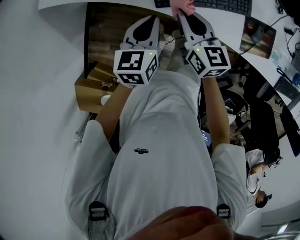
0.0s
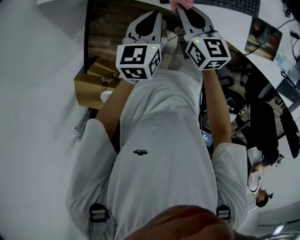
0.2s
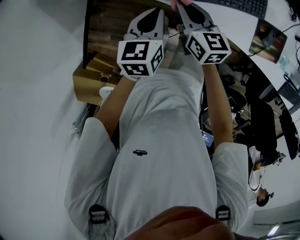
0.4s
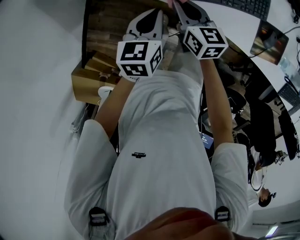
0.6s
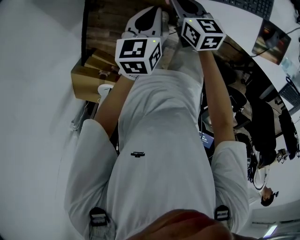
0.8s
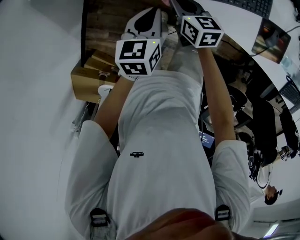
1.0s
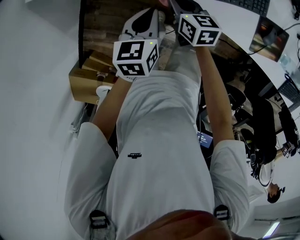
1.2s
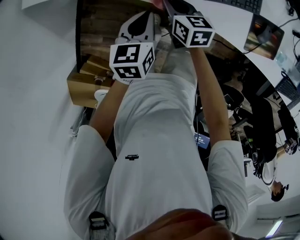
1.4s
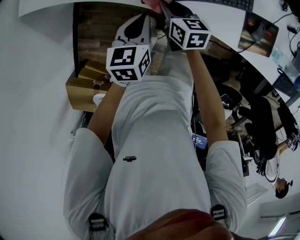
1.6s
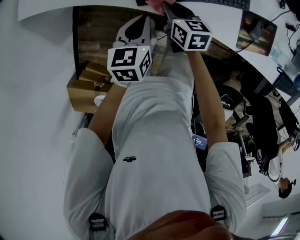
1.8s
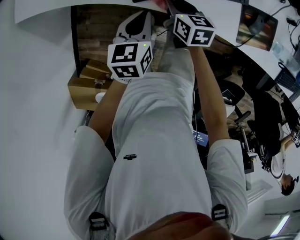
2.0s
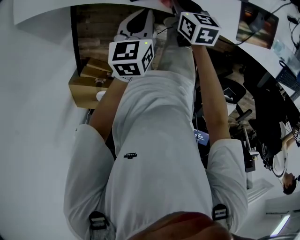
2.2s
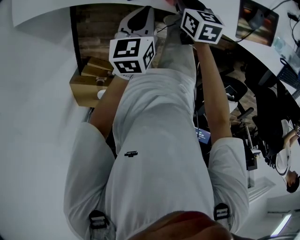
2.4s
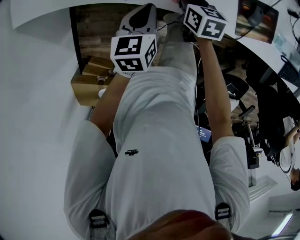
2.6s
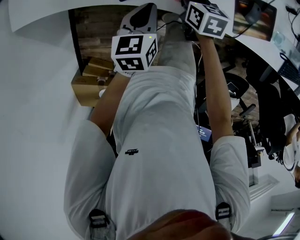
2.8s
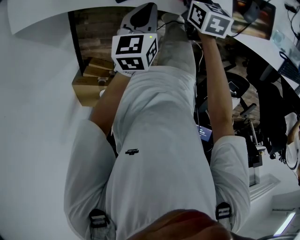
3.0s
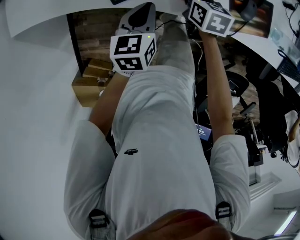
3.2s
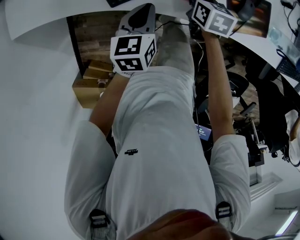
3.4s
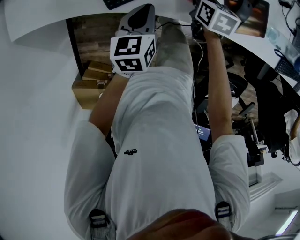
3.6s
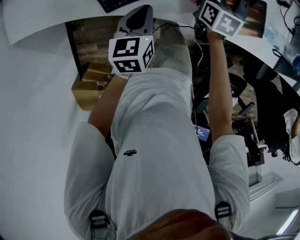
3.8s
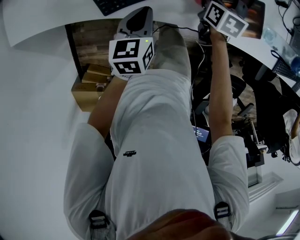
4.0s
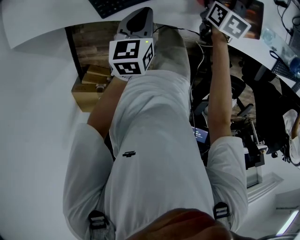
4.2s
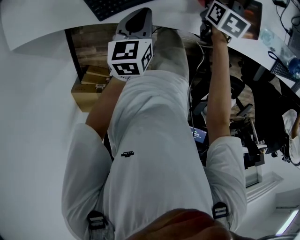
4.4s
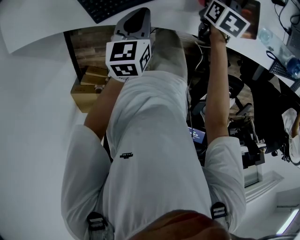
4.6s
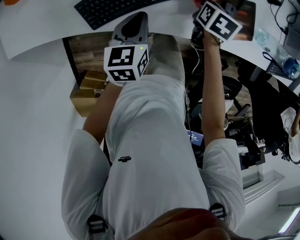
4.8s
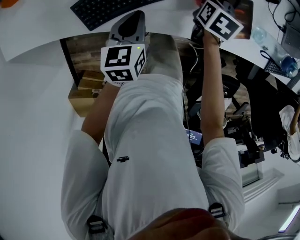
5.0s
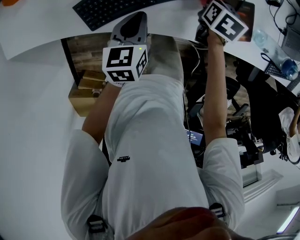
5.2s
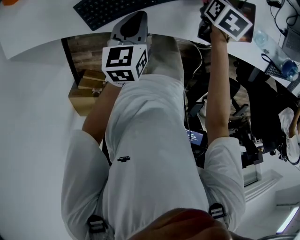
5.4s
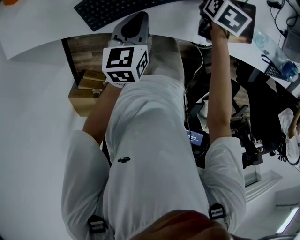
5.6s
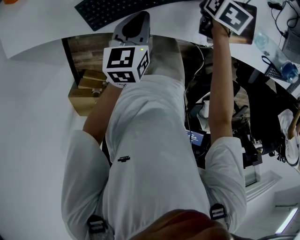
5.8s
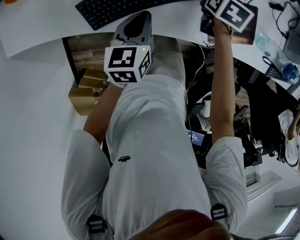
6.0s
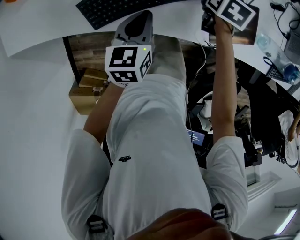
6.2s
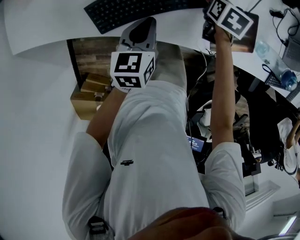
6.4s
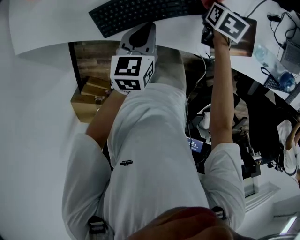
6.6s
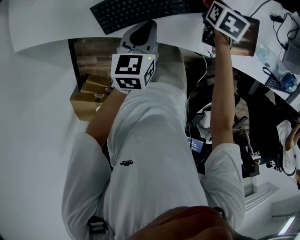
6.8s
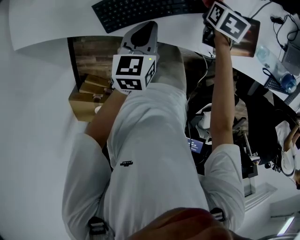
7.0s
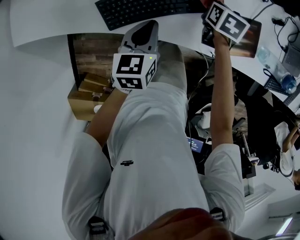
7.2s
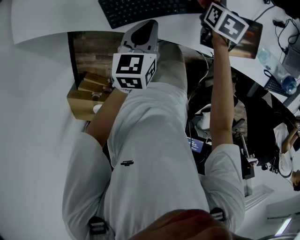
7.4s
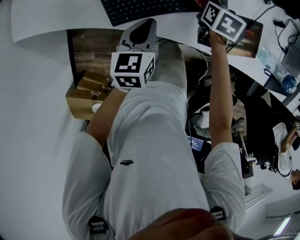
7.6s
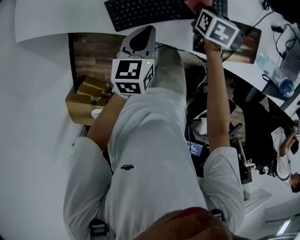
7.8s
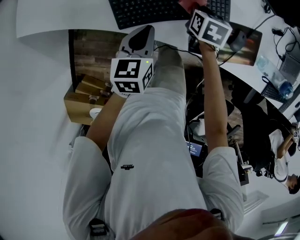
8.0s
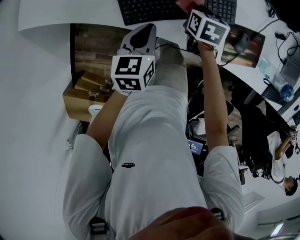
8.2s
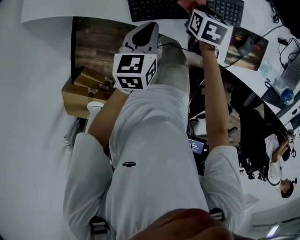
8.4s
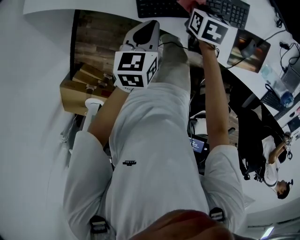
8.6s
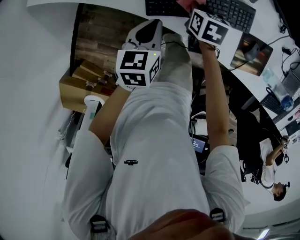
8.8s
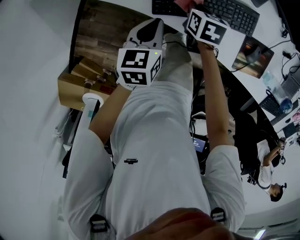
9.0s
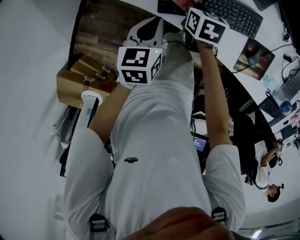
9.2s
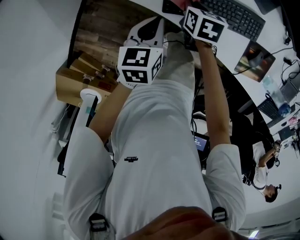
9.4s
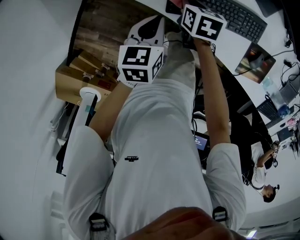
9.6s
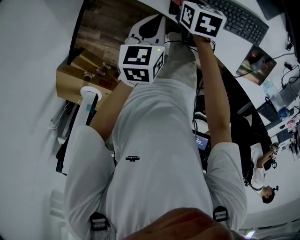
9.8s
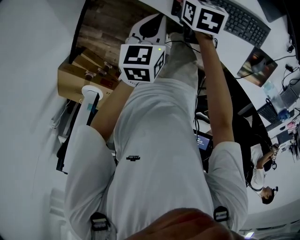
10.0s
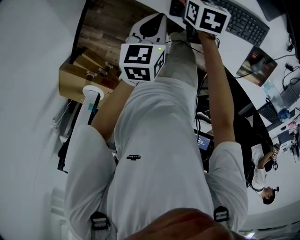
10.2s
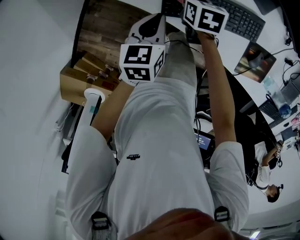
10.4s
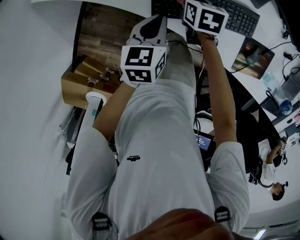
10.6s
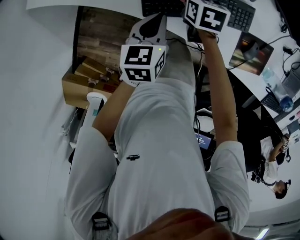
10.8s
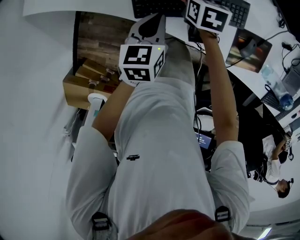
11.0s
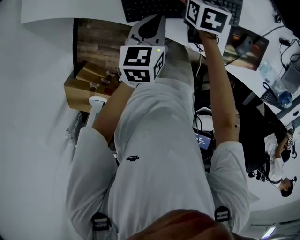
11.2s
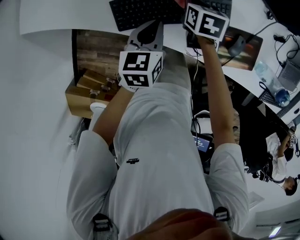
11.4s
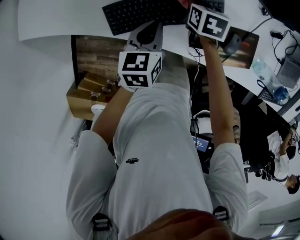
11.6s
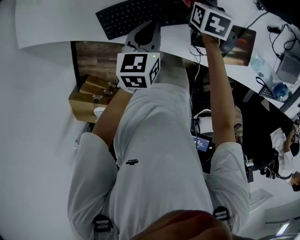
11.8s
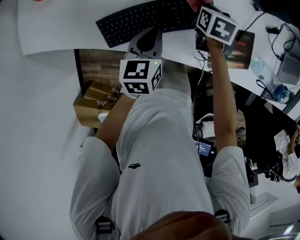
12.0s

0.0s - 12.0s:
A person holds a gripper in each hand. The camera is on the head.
0.0s - 1.6s: The right gripper travels downward by about 15 cm. Meanwhile the left gripper goes some 10 cm downward.
1.6s - 3.0s: The right gripper is displaced to the right by about 15 cm; the left gripper goes approximately 10 cm to the right.
3.0s - 4.4s: The left gripper ends up some 5 cm from where it was. Meanwhile the right gripper is displaced to the right by approximately 15 cm.
4.4s - 6.0s: The right gripper is displaced forward by about 5 cm.
6.0s - 7.6s: The right gripper heads to the left, covering approximately 5 cm, while the left gripper moves some 5 cm.
7.6s - 9.0s: The right gripper moves to the left, roughly 20 cm, while the left gripper heads to the left, covering approximately 10 cm.
9.0s - 10.4s: The right gripper travels to the left by about 5 cm.
10.4s - 12.0s: Both grippers move to the right, about 25 cm. The right gripper rotates approximately 20 degrees.

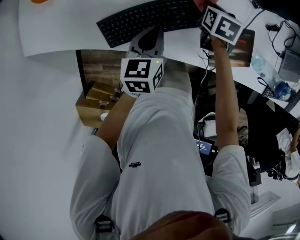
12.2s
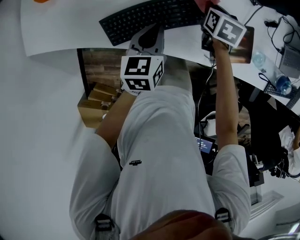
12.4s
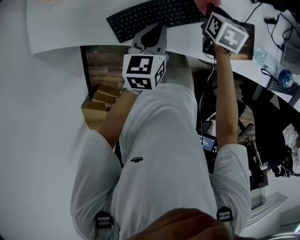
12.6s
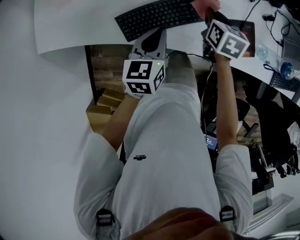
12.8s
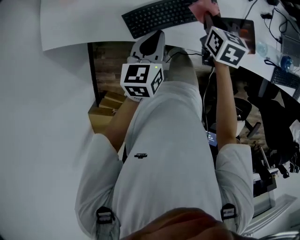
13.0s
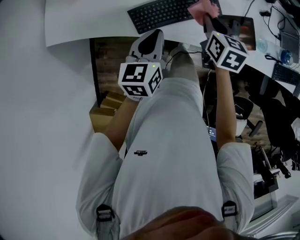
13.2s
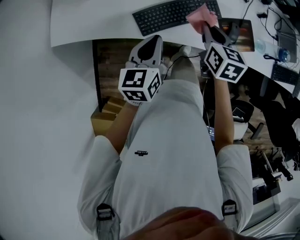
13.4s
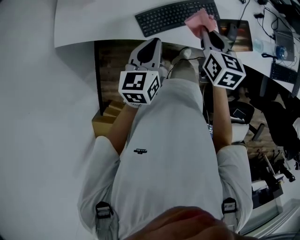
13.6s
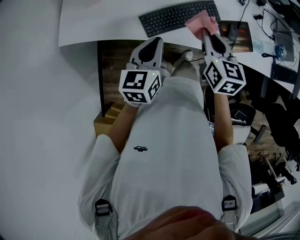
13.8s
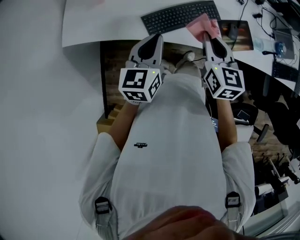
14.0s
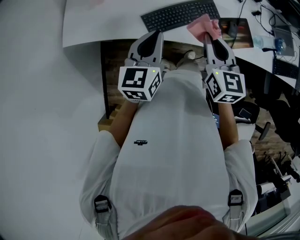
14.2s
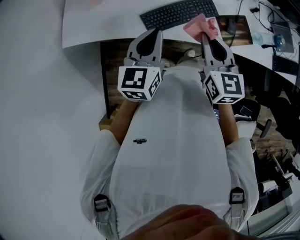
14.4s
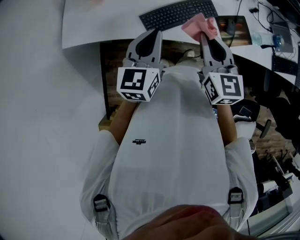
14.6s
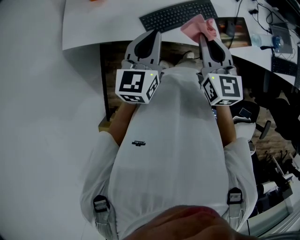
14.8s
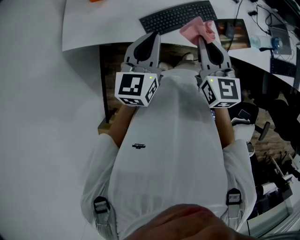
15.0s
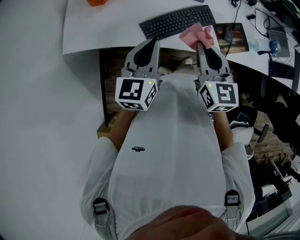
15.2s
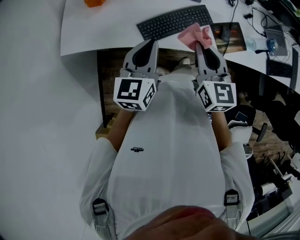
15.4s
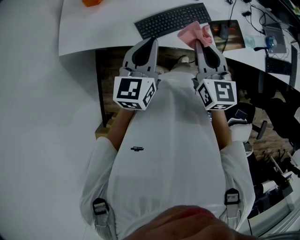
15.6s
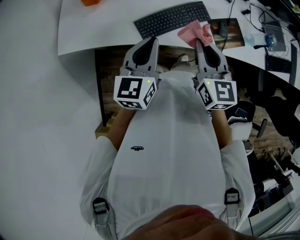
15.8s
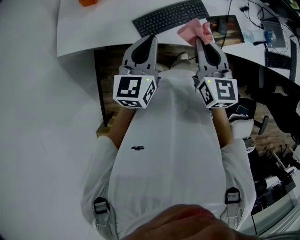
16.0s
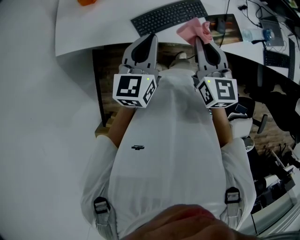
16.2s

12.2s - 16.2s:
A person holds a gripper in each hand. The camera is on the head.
12.2s - 13.6s: The two grippers go about 30 cm upward, backward and to the left. The right gripper turns by roughly 20 degrees.
13.6s - 14.8s: The left gripper moves upward, approximately 10 cm. The right gripper moves upward and backward, some 10 cm, and changes its angle by roughly 20 degrees.
14.8s - 16.2s: There are only small adjustments of the grippers.

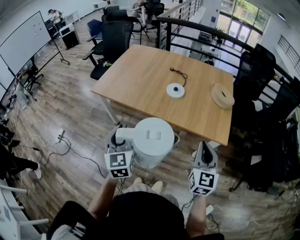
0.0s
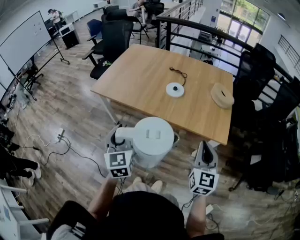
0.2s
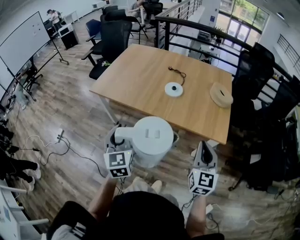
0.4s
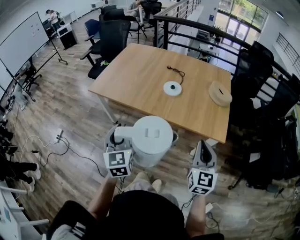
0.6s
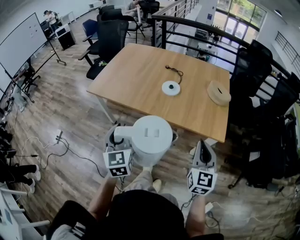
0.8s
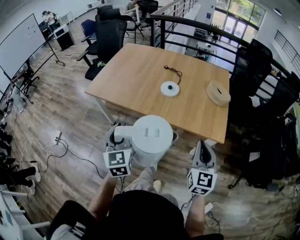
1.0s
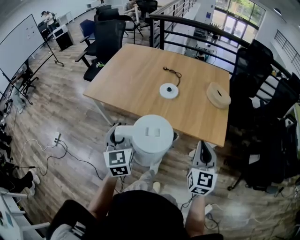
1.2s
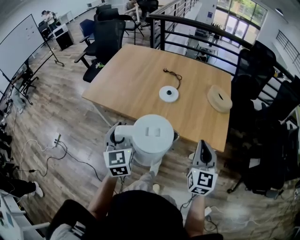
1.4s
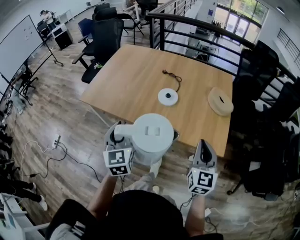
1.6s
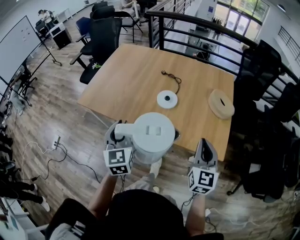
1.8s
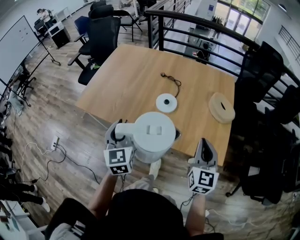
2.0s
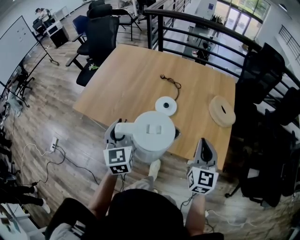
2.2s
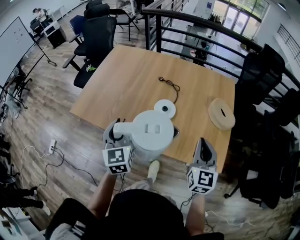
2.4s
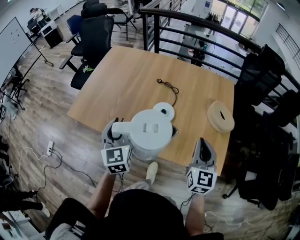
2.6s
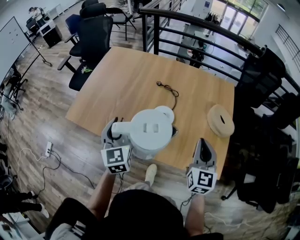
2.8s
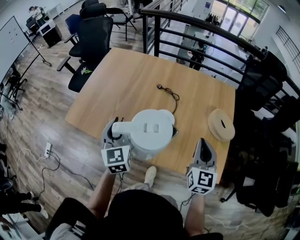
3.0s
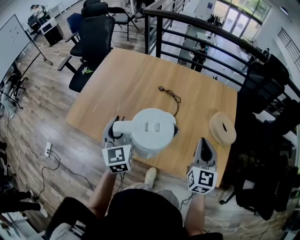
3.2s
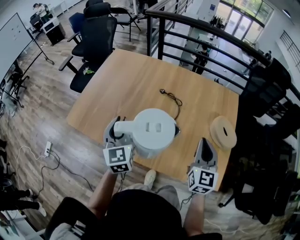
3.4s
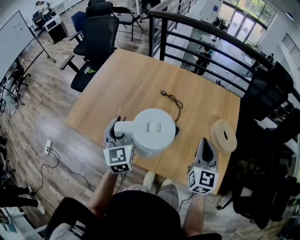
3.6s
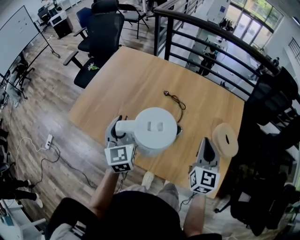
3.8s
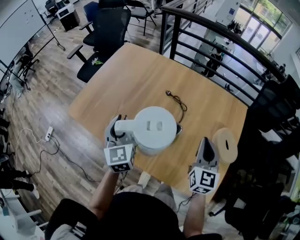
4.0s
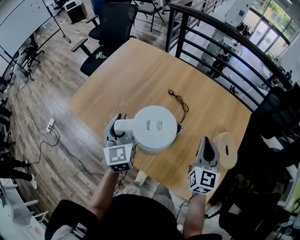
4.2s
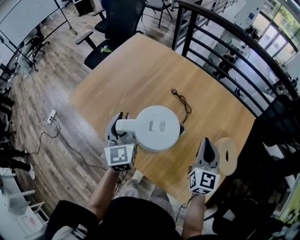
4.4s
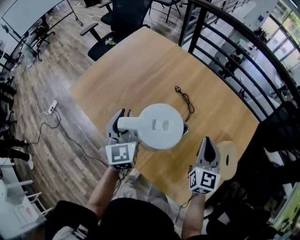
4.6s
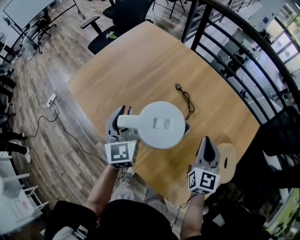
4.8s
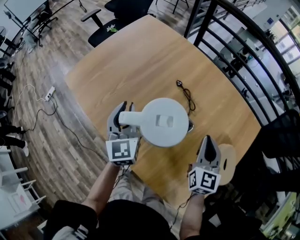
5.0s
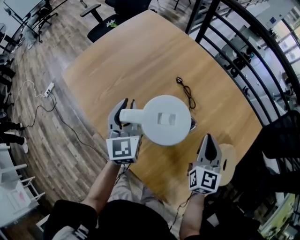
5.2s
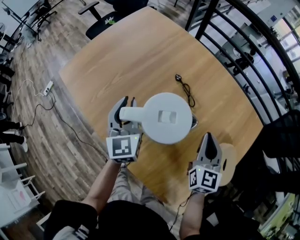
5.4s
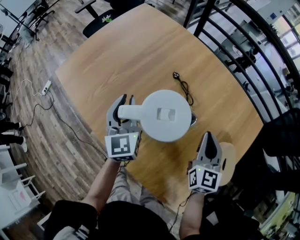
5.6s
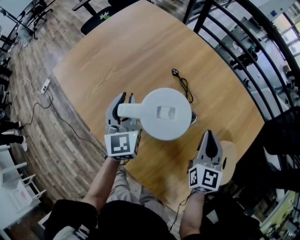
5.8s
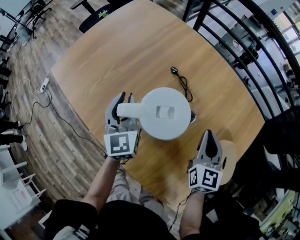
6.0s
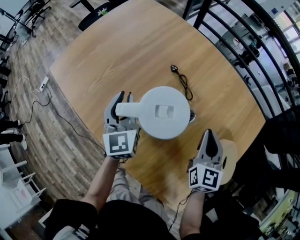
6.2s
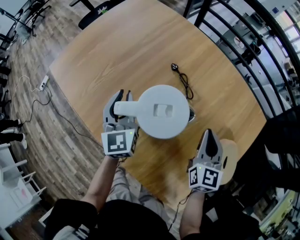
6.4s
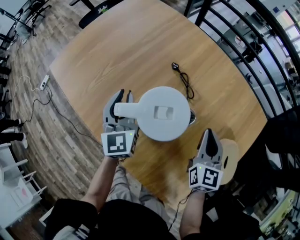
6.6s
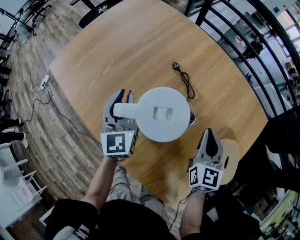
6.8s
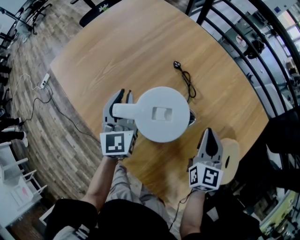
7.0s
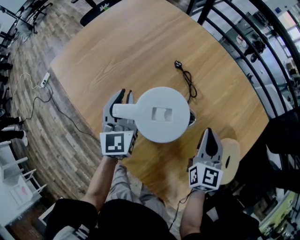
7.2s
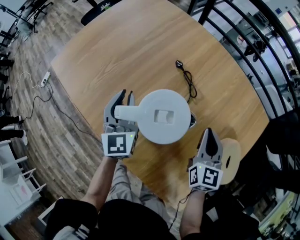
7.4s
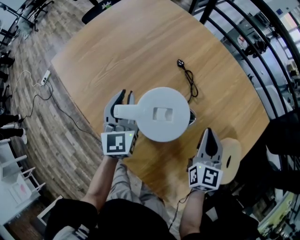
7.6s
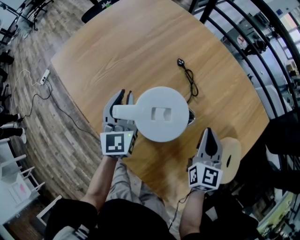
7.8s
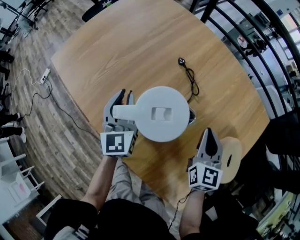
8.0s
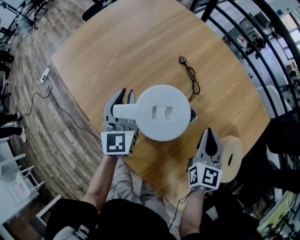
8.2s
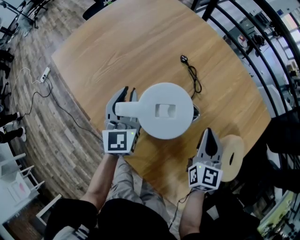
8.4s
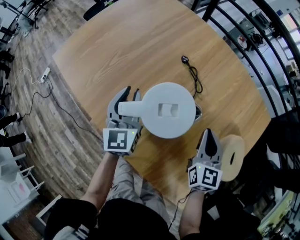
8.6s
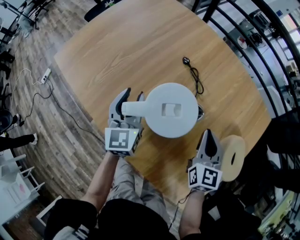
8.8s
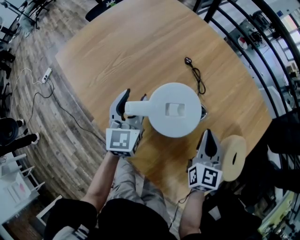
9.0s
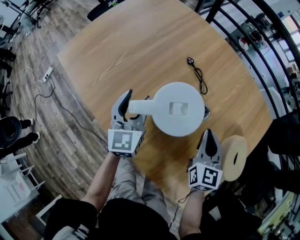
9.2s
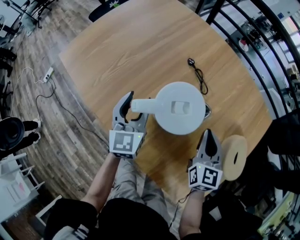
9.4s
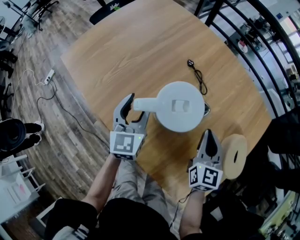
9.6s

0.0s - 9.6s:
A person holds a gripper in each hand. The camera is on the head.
0.0s - 1.6s: The two grippers go roughly 15 cm forward.
1.6s - 3.2s: Both grippers move forward, about 25 cm.
3.2s - 4.8s: The left gripper is displaced downward and forward by some 10 cm; the right gripper is displaced forward and downward by roughly 20 cm, and turns by some 20 degrees.
4.8s - 6.4s: Both grippers move downward and to the right, roughly 10 cm.
6.4s - 8.0s: The grippers make only small movements.
8.0s - 9.6s: The left gripper opens up, while the right gripper moves some 5 cm.
